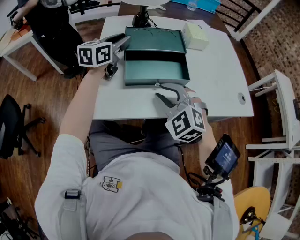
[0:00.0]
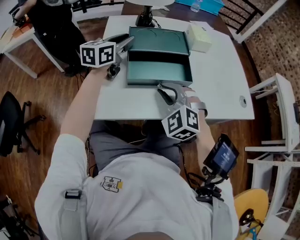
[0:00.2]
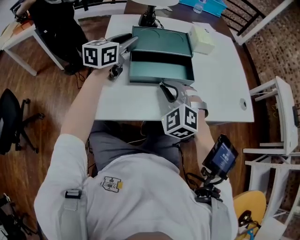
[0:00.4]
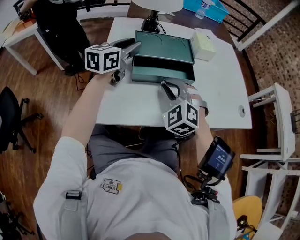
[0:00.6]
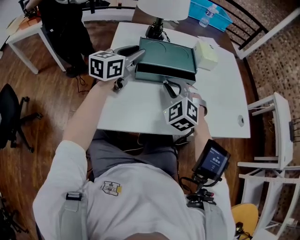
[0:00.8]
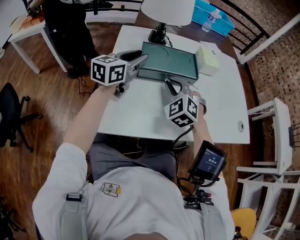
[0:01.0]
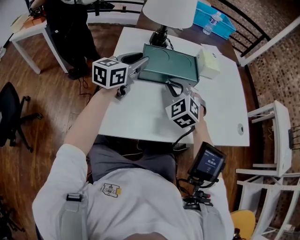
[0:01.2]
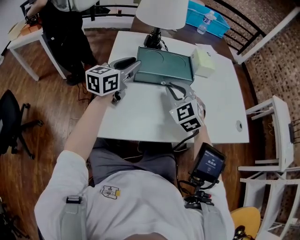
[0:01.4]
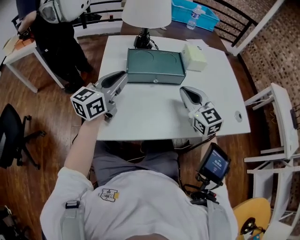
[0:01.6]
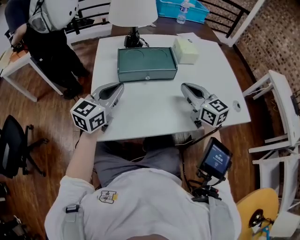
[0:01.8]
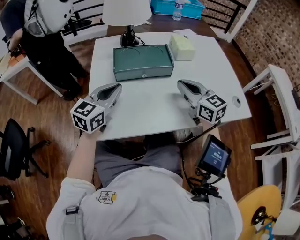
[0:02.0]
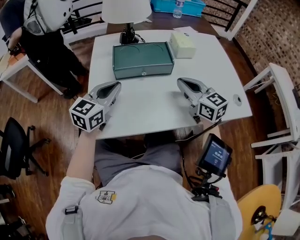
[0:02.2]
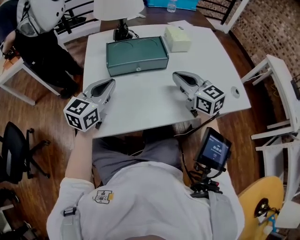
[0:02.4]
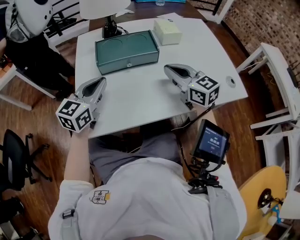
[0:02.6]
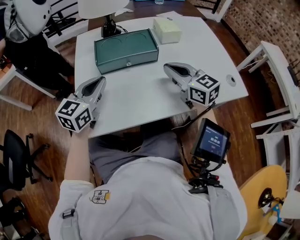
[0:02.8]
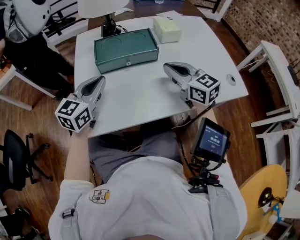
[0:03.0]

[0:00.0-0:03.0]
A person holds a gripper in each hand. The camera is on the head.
0:00.0 to 0:01.6: The right gripper goes roughly 15 cm forward and to the right, swivels approximately 40 degrees, and closes its fingers; the left gripper shifts about 10 cm backward.
0:01.6 to 0:03.0: The left gripper shifts by some 5 cm.

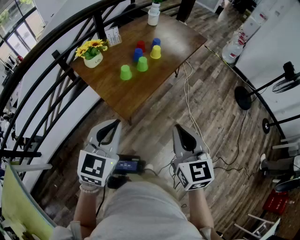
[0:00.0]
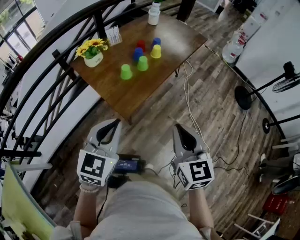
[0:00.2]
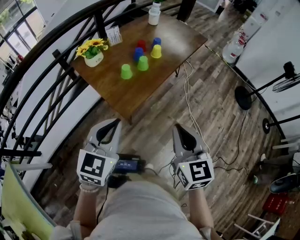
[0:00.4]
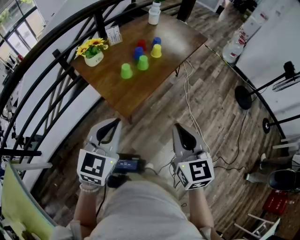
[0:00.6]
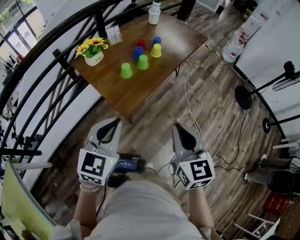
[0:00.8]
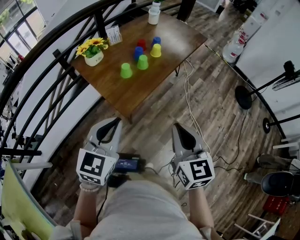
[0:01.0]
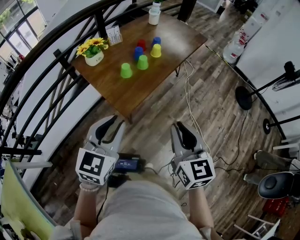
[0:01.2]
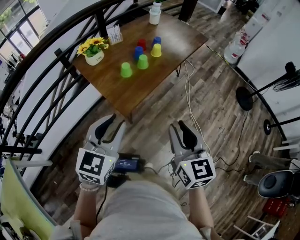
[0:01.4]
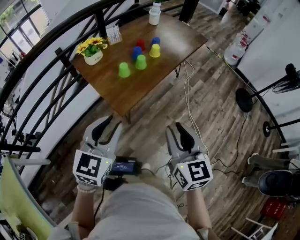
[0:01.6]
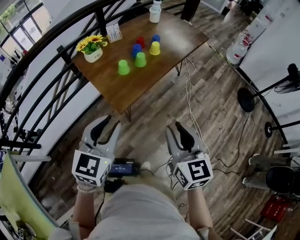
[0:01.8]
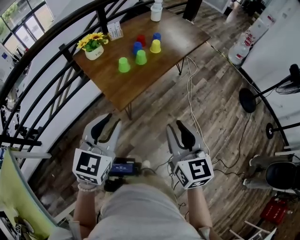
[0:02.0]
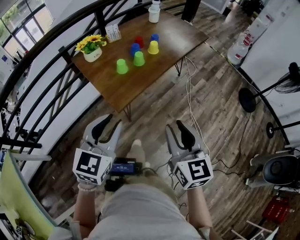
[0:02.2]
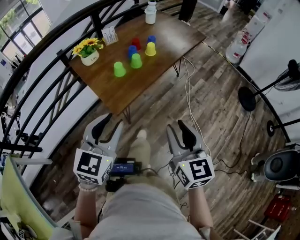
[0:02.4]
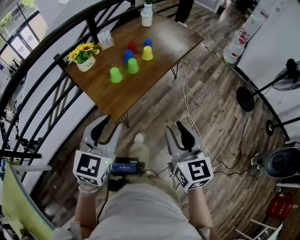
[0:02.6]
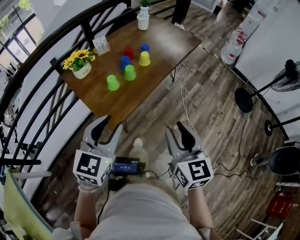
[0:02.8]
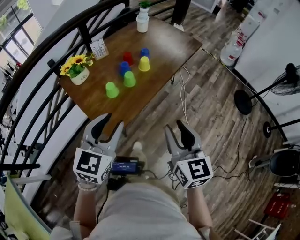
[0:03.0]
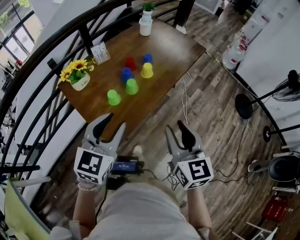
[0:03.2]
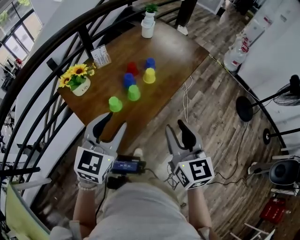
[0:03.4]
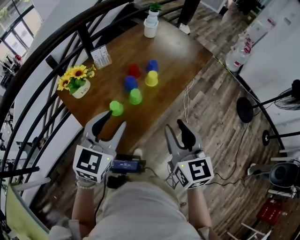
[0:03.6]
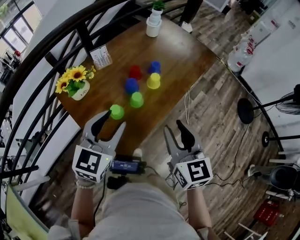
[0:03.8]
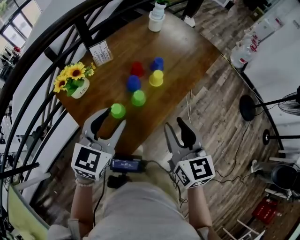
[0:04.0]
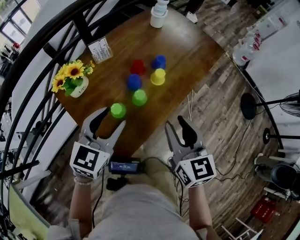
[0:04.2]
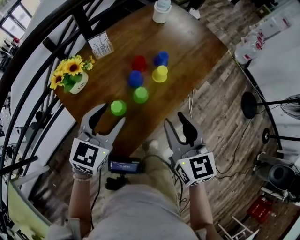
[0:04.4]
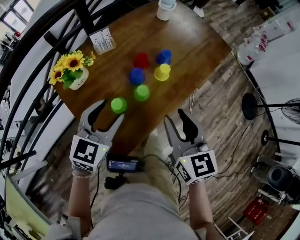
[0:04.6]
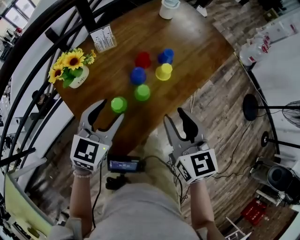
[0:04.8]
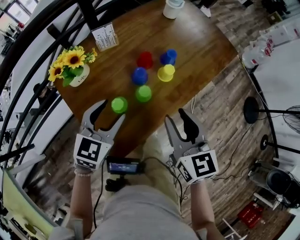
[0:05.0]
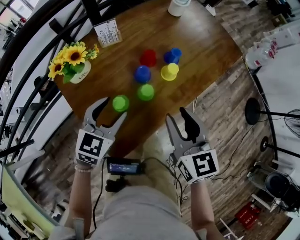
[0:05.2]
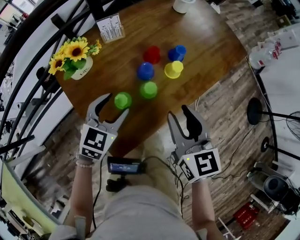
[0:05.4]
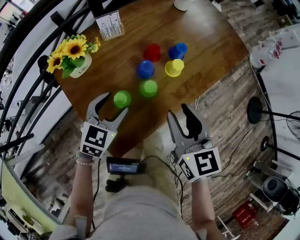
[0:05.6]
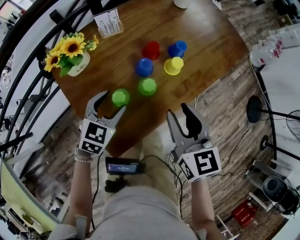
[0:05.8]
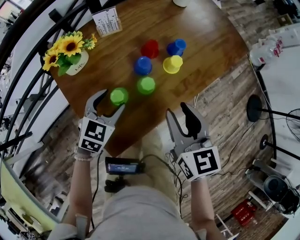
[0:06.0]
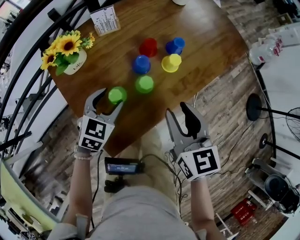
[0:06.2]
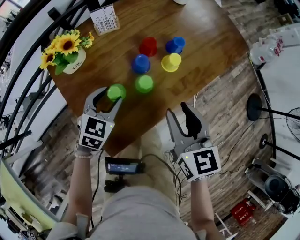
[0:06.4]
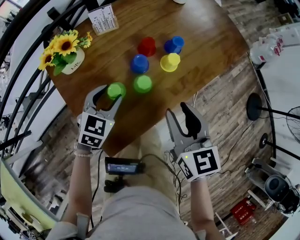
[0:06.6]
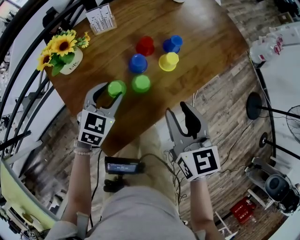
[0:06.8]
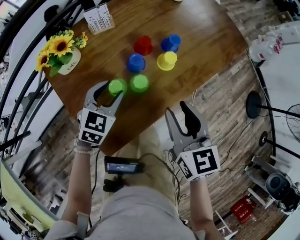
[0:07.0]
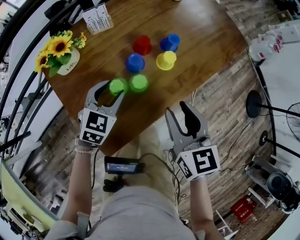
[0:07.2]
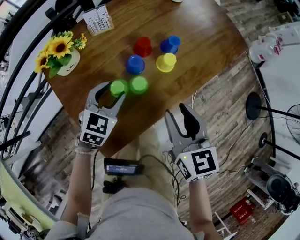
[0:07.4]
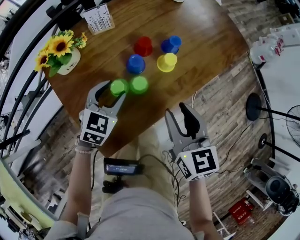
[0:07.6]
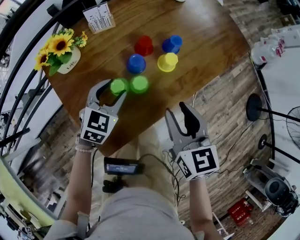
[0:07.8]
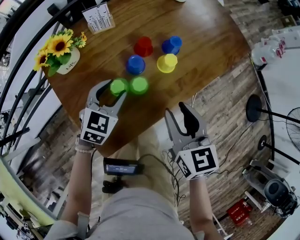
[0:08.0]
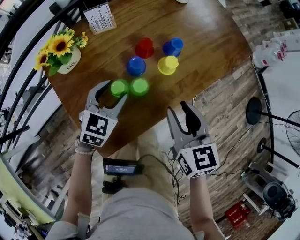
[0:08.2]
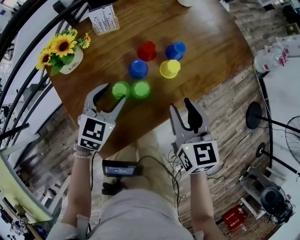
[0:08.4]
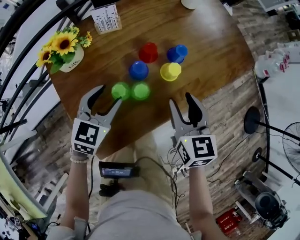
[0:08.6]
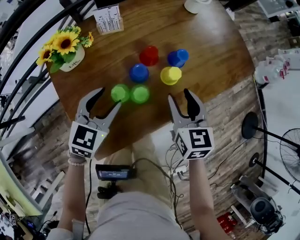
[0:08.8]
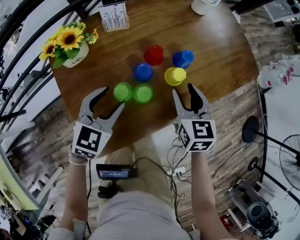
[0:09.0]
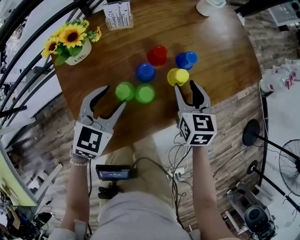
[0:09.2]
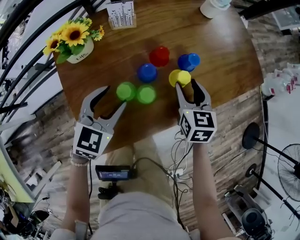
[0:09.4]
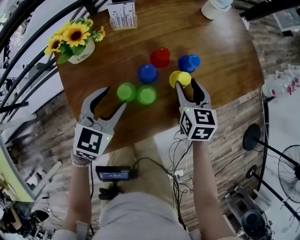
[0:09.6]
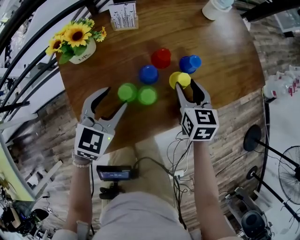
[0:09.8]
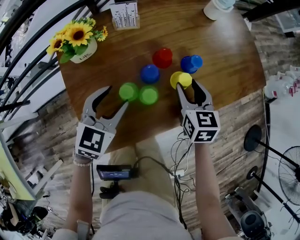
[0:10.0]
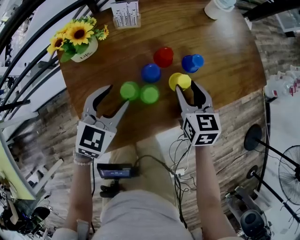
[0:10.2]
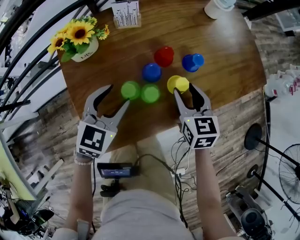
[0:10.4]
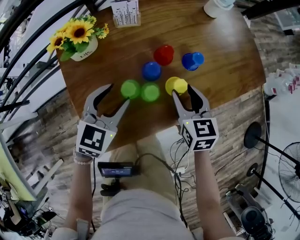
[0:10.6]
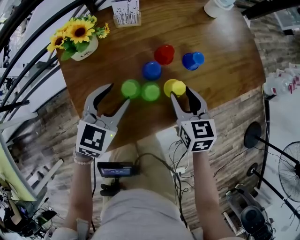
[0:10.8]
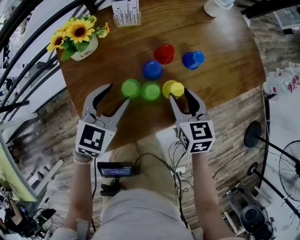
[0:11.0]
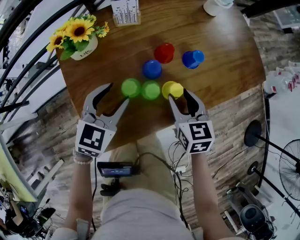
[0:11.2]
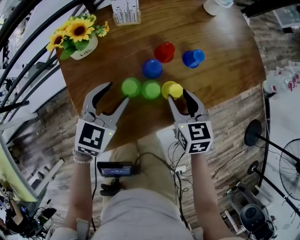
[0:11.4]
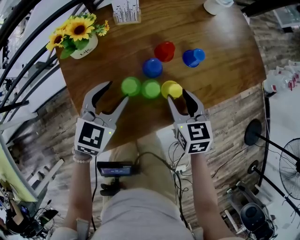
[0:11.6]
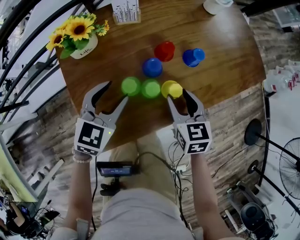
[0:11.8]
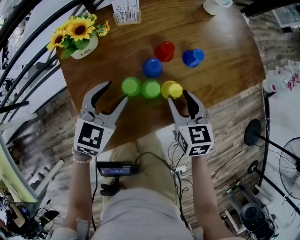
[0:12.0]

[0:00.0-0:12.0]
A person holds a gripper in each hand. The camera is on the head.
0:00.0 to 0:01.6: The left gripper opens up; the right gripper opens up.
0:01.6 to 0:03.0: Both grippers move forward, approximately 15 cm.
0:03.0 to 0:04.4: Both grippers travel together forward, approximately 20 cm.
0:04.4 to 0:06.0: The left gripper shifts approximately 15 cm downward; the right gripper goes about 5 cm downward.
0:06.0 to 0:07.6: The left gripper ends up about 5 cm from where it was.
0:07.6 to 0:09.0: The right gripper heads forward and downward, covering some 15 cm.
0:09.0 to 0:10.4: The grippers make only small movements.
0:10.4 to 0:12.0: There are only small adjustments of the grippers.

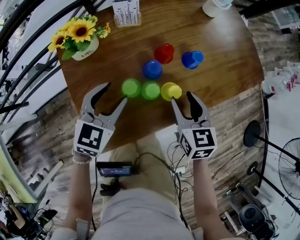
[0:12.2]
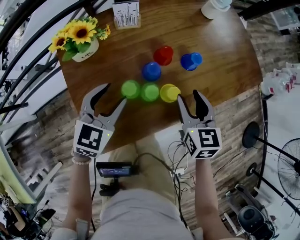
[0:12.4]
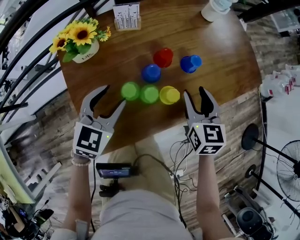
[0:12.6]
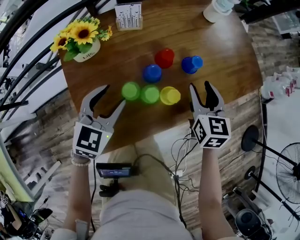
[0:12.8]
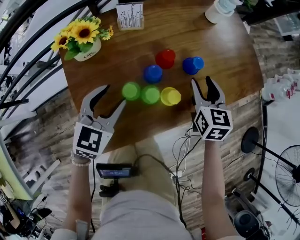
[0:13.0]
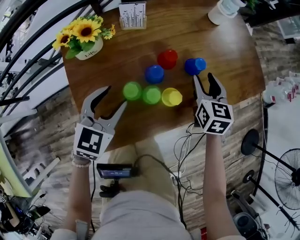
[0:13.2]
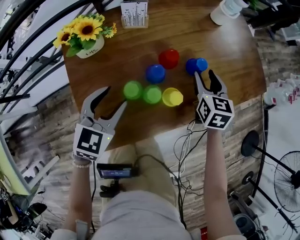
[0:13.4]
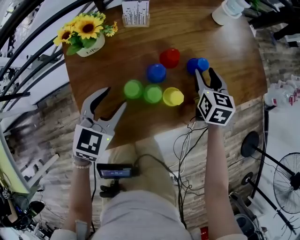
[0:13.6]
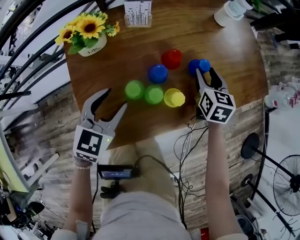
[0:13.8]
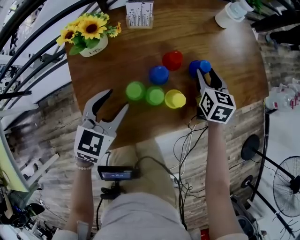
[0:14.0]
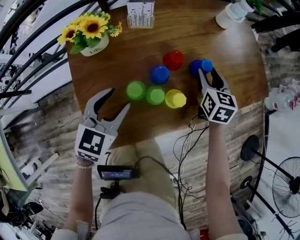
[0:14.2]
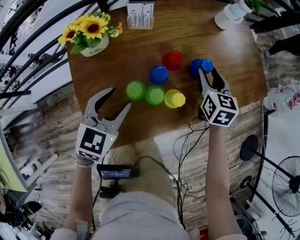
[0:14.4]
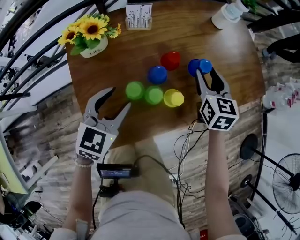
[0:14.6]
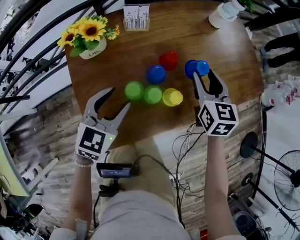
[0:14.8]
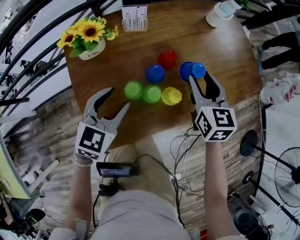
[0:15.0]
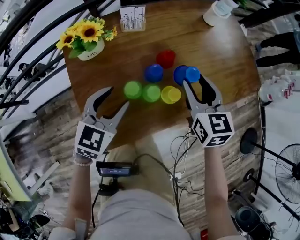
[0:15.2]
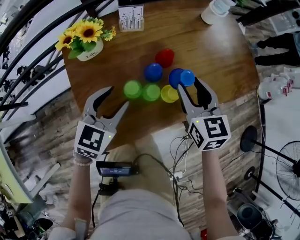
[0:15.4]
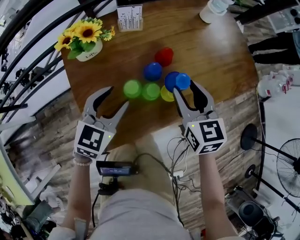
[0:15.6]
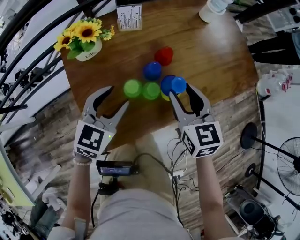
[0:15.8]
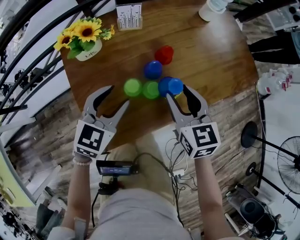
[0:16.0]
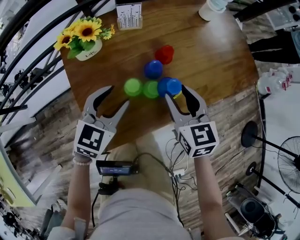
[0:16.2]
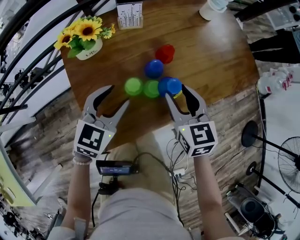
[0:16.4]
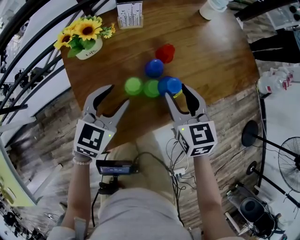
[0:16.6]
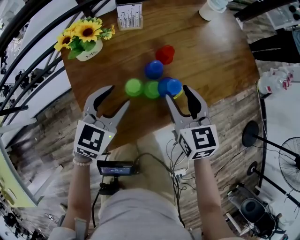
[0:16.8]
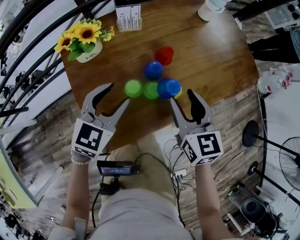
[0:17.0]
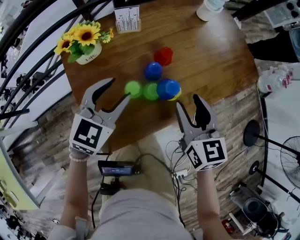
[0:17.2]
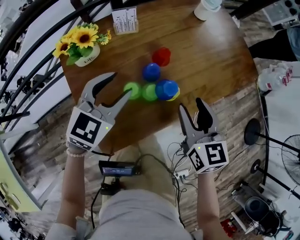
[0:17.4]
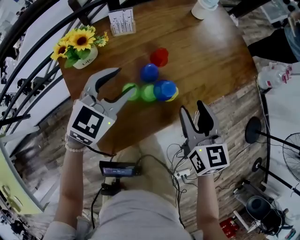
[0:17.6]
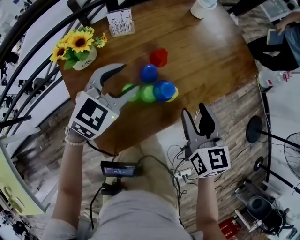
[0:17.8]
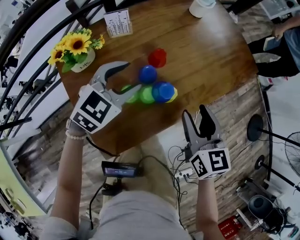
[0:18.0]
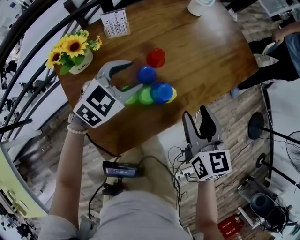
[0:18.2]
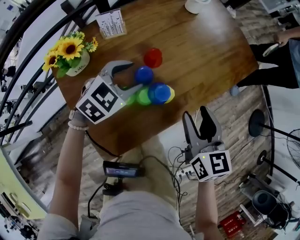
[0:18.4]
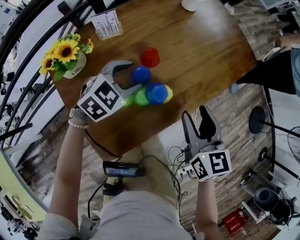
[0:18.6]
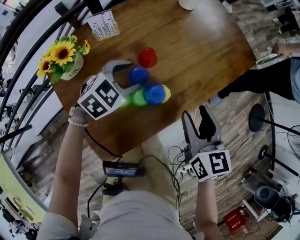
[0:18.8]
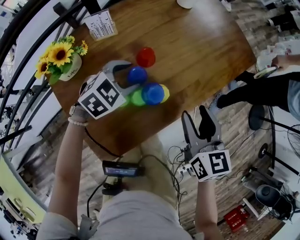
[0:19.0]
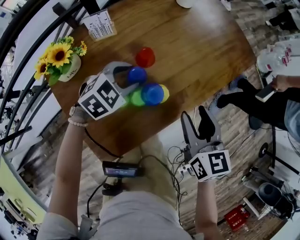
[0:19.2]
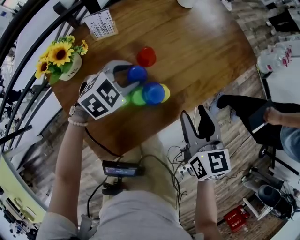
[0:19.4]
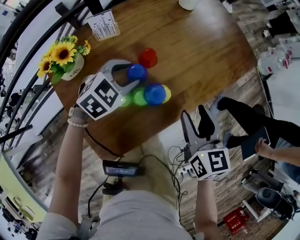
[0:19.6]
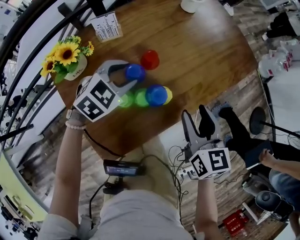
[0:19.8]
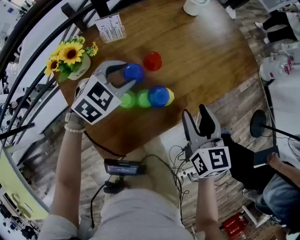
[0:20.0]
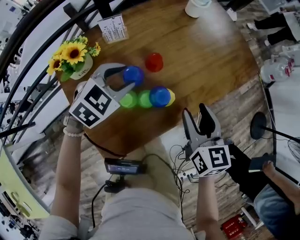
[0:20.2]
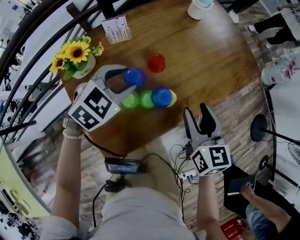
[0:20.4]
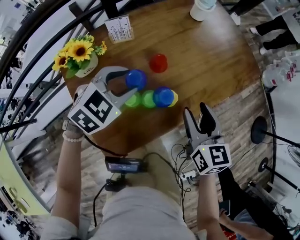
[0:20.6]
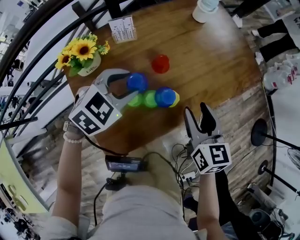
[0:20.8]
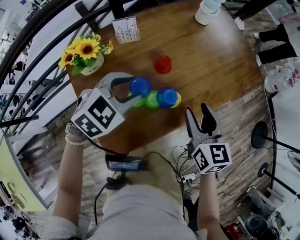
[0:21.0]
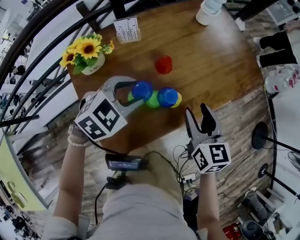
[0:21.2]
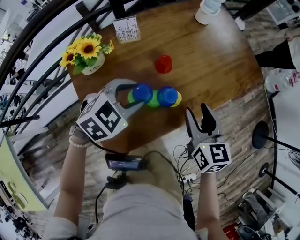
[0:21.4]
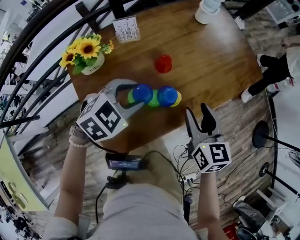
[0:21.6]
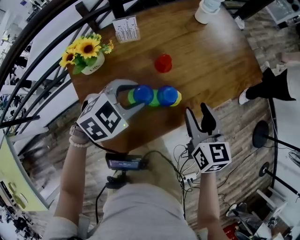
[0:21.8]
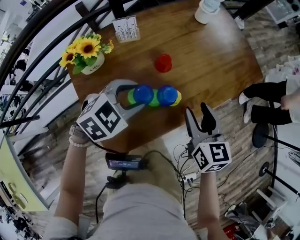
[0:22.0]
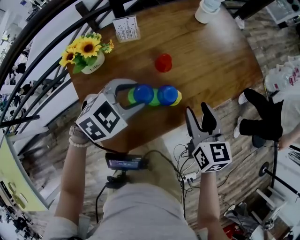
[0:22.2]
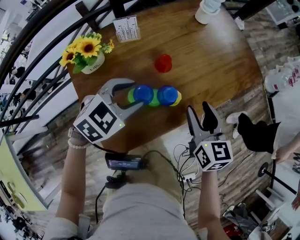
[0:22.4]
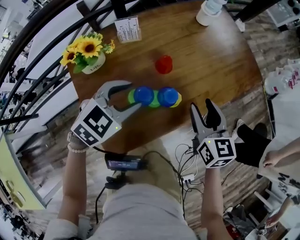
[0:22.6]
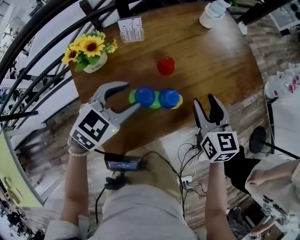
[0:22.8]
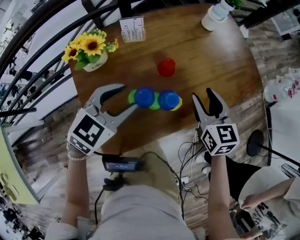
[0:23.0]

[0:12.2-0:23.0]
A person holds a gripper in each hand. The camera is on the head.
0:12.2 to 0:13.8: The right gripper moves forward, about 15 cm.
0:13.8 to 0:15.2: The right gripper heads upward and backward, covering approximately 15 cm.
0:15.2 to 0:16.8: The right gripper goes approximately 5 cm backward.
0:16.8 to 0:18.4: The right gripper shifts some 10 cm to the right, while the left gripper is displaced forward and to the right by some 10 cm, and turns by roughly 30 degrees.
0:18.4 to 0:20.0: There are only small adjustments of the grippers.
0:20.0 to 0:21.4: The left gripper shifts approximately 5 cm backward.
0:21.4 to 0:23.0: The left gripper swivels roughly 20 degrees. Meanwhile the right gripper goes some 5 cm forward.
